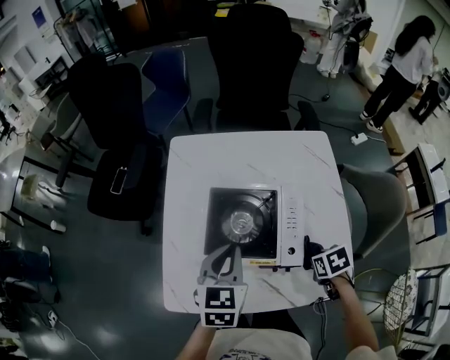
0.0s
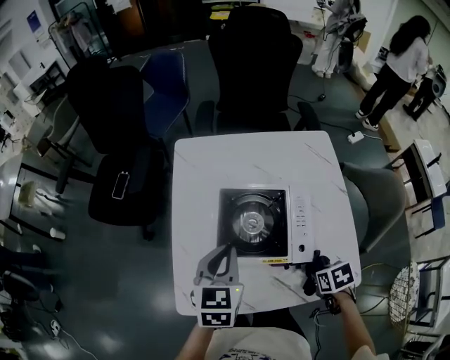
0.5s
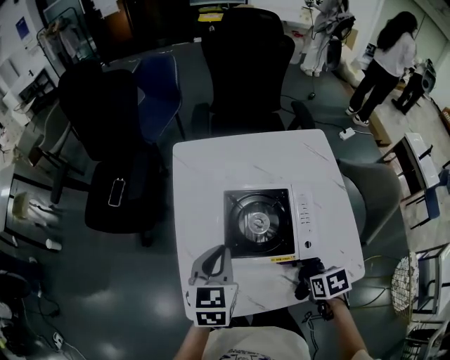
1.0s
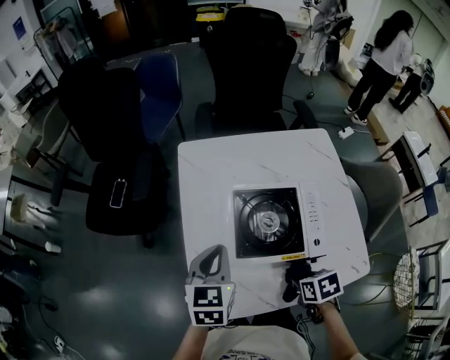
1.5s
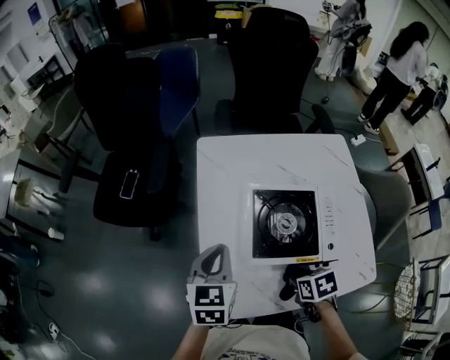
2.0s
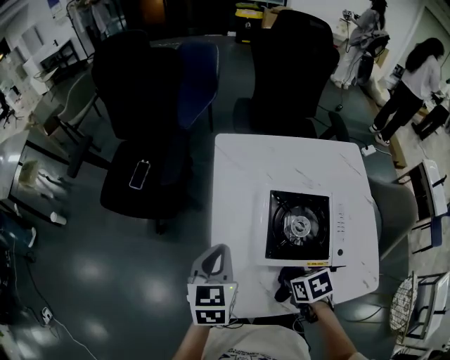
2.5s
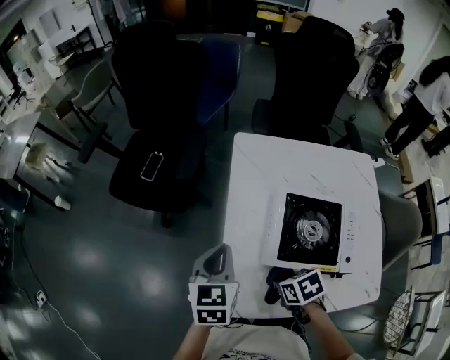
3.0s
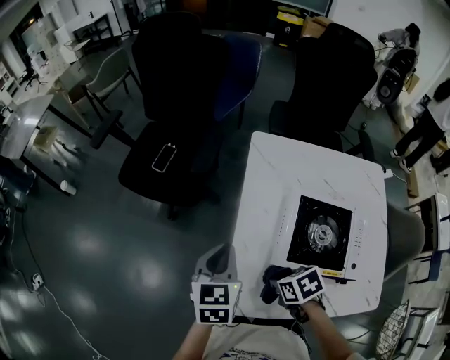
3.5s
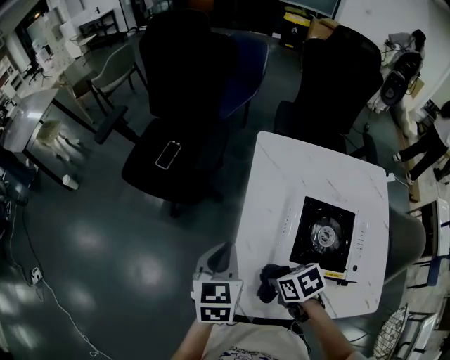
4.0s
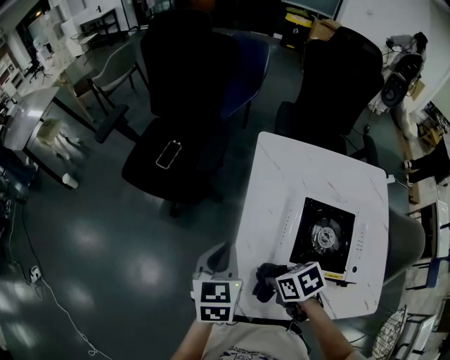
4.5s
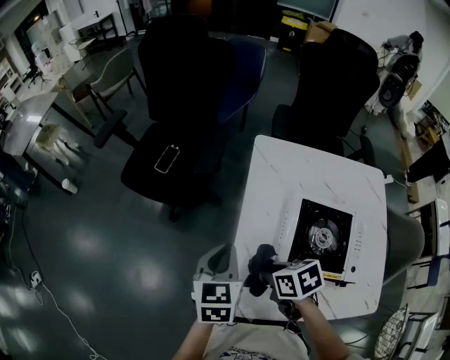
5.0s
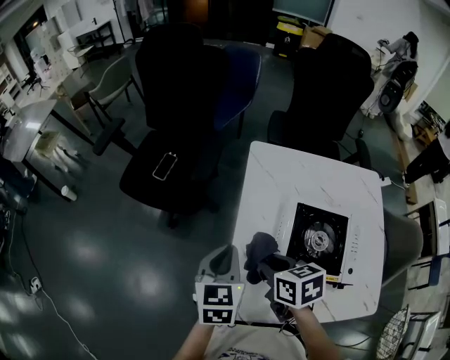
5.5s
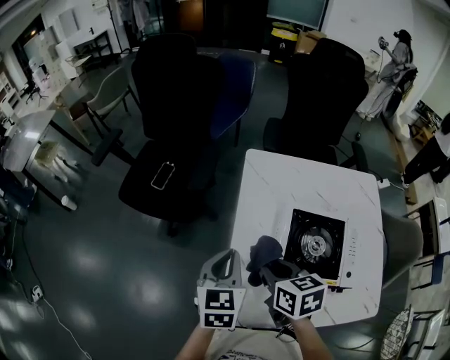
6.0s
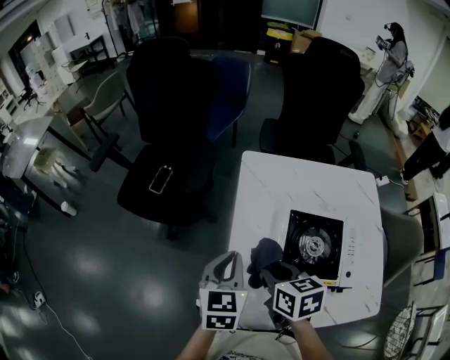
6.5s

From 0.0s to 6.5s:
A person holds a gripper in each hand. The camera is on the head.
From 0.0s to 2.0s: The right gripper ends up about 20 cm from where it was. Meanwhile the left gripper ends up about 20 cm from where it was.
From 2.0s to 4.5s: The left gripper moves to the left, about 10 cm. Meanwhile the right gripper moves to the left and forward, some 20 cm, and rotates some 30 degrees.
From 4.5s to 6.5s: The right gripper goes roughly 10 cm upward and forward, and rotates about 30 degrees. Meanwhile the left gripper shifts by approximately 5 cm.

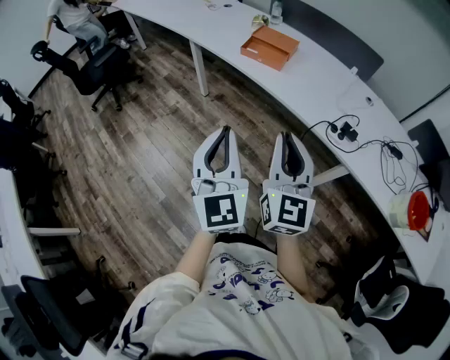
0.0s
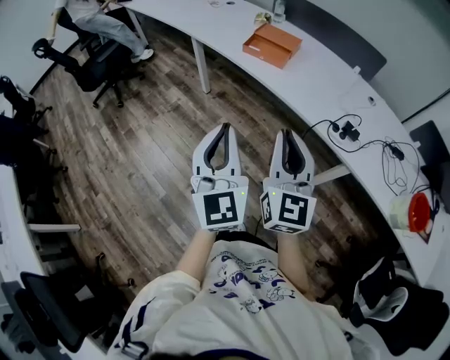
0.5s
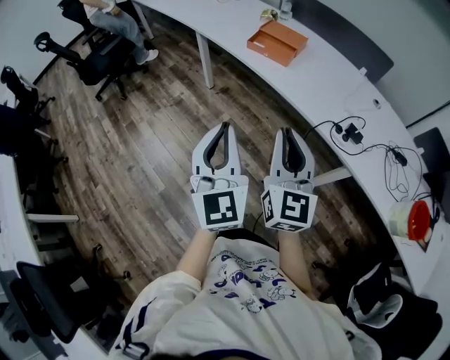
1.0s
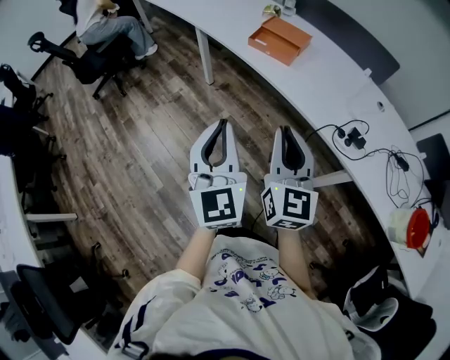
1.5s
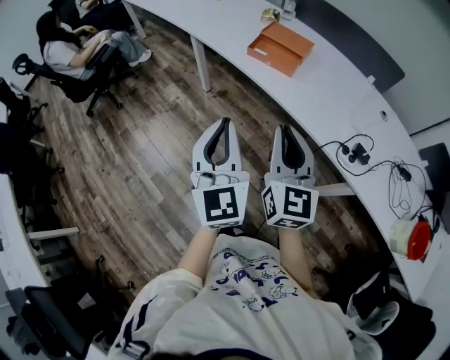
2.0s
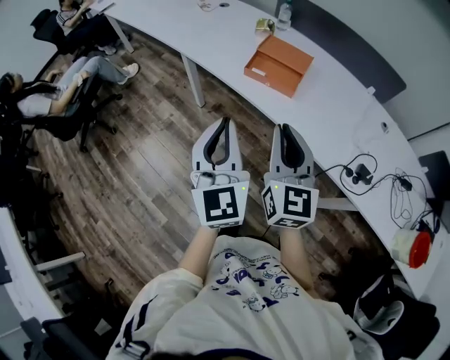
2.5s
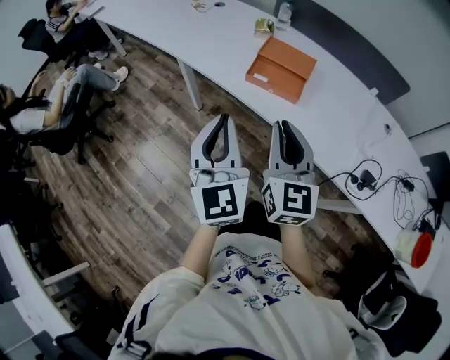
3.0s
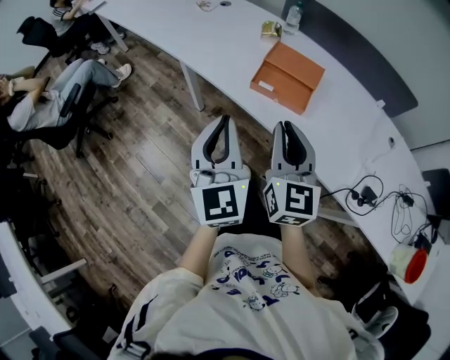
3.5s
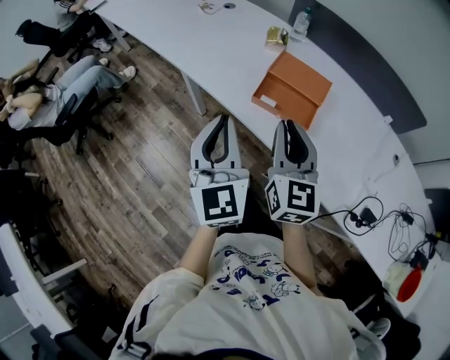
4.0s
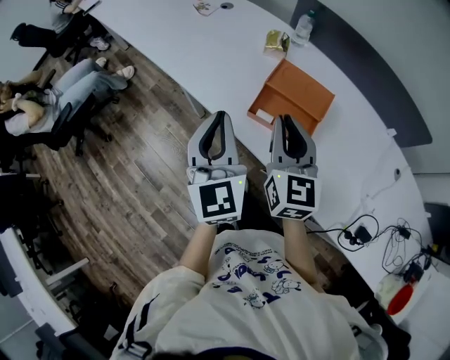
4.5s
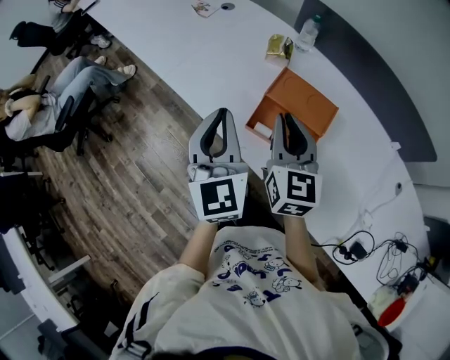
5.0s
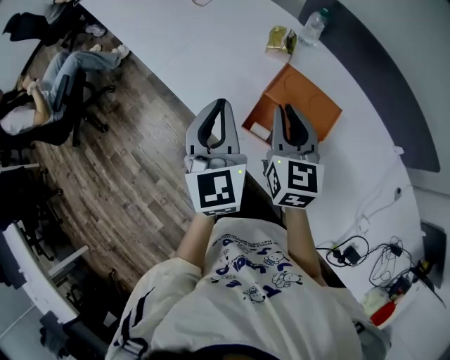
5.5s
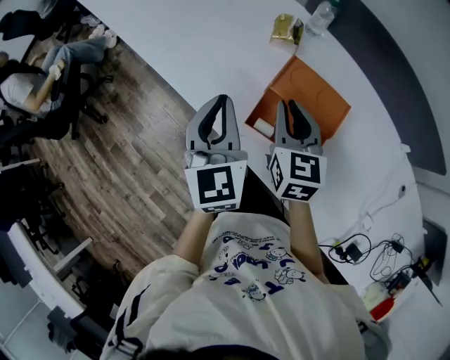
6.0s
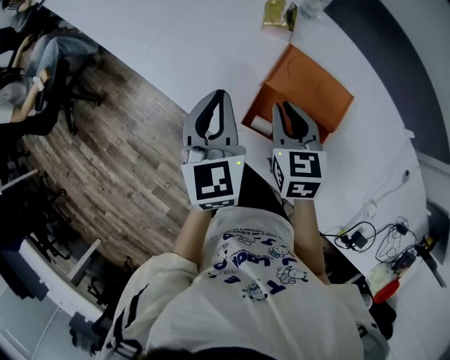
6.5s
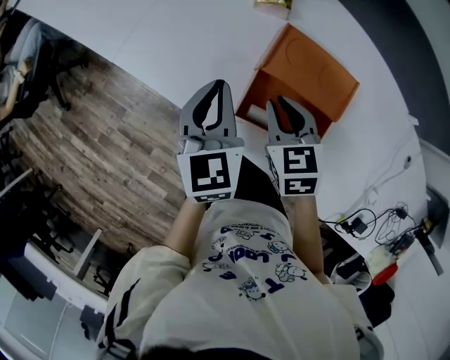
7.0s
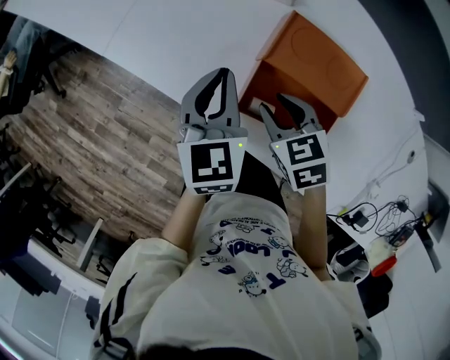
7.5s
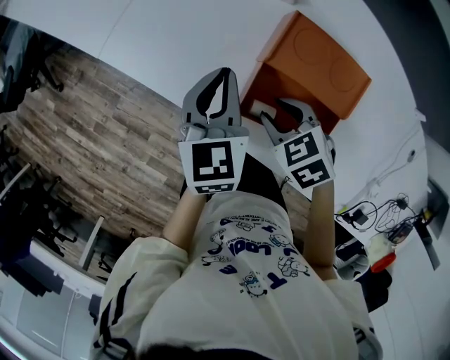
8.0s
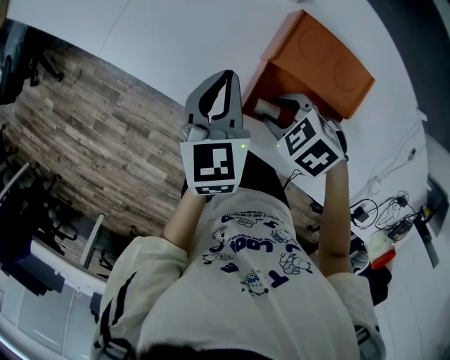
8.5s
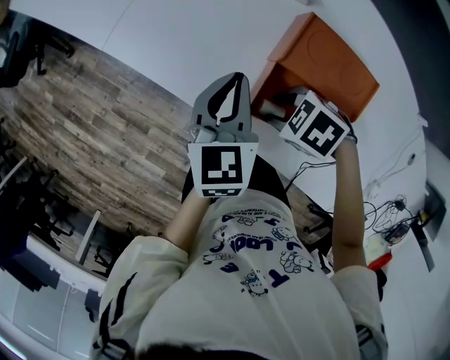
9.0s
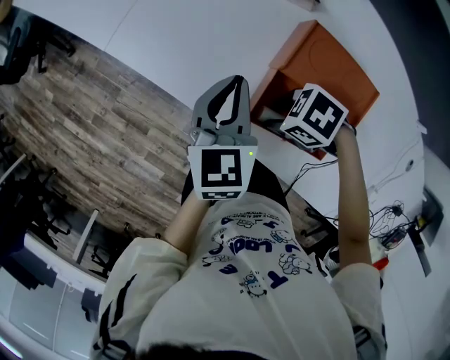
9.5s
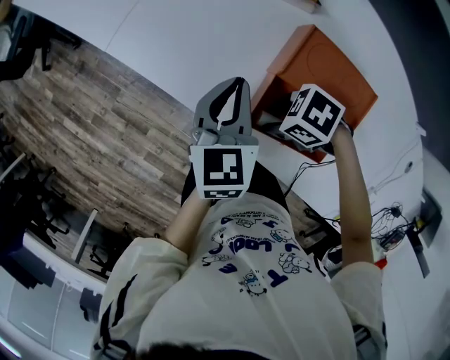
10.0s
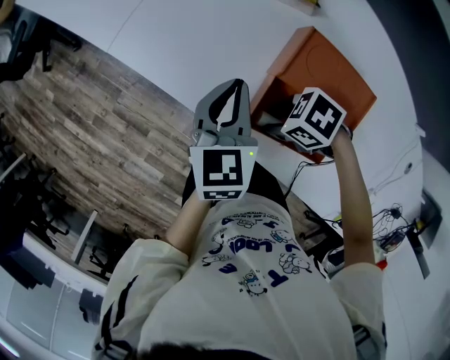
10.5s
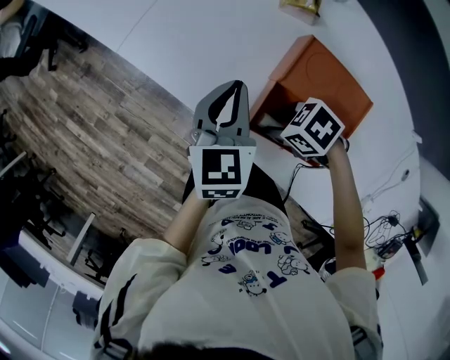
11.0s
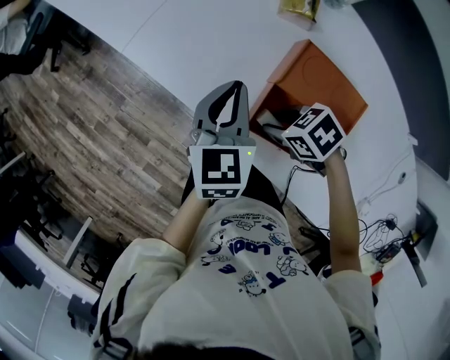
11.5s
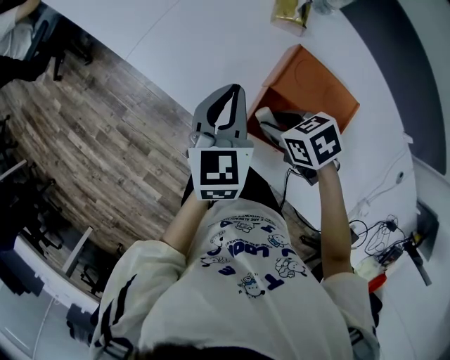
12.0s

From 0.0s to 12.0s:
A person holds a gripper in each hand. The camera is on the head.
From 0.0s to 2.0s: The grippers both shift forward by some 15 cm.
From 2.0s to 4.0s: The grippers both shift forward by some 35 cm.
From 4.0s to 6.0s: The right gripper moves forward and downward, some 25 cm. The left gripper heads forward, covering roughly 25 cm.
From 6.0s to 8.0s: The left gripper shifts roughly 15 cm downward and forward, and swivels roughly 20 degrees. Meanwhile the right gripper heads downward, covering approximately 15 cm, points its fingers approximately 40 degrees further downward, and opens its fingers.
From 8.0s to 10.0s: The right gripper changes its angle by roughly 40 degrees.
From 10.0s to 12.0s: The grippers both shift upward by some 5 cm. The right gripper swivels some 30 degrees.

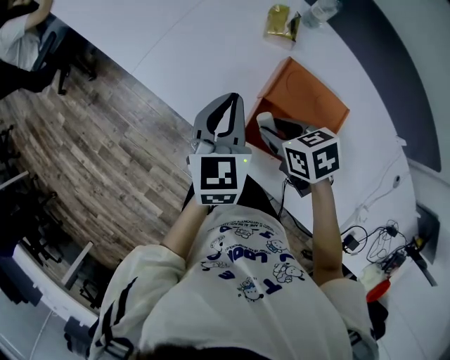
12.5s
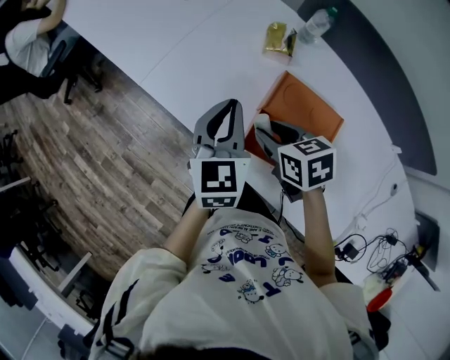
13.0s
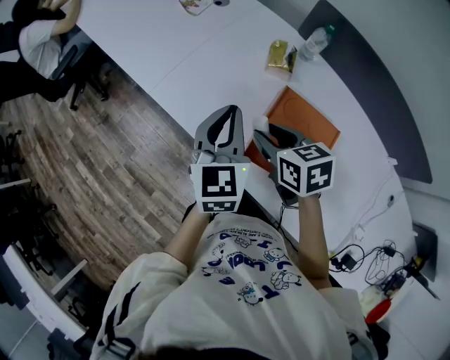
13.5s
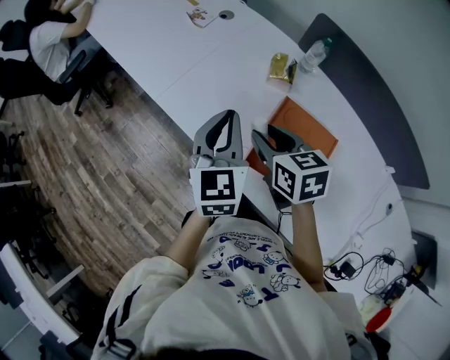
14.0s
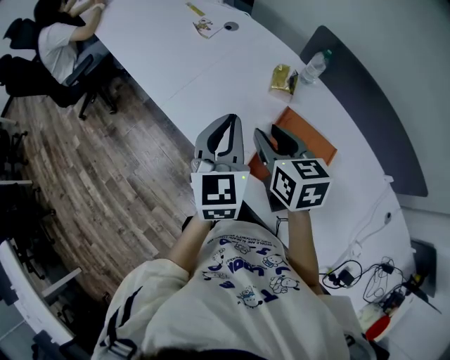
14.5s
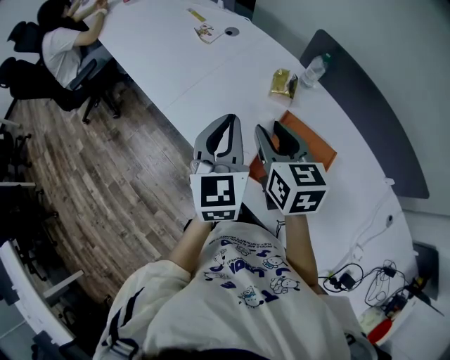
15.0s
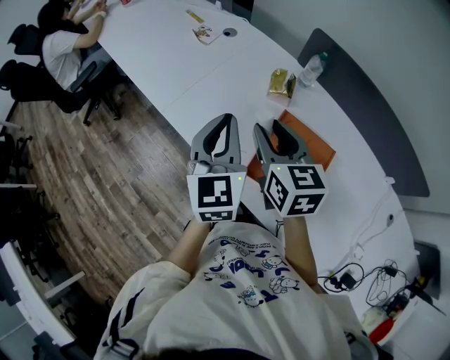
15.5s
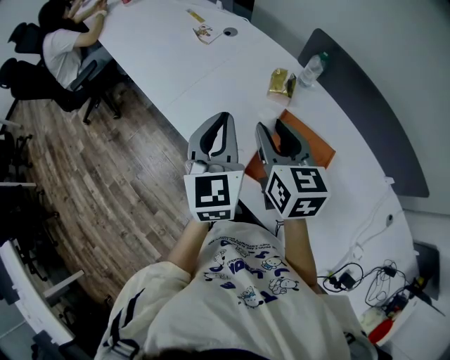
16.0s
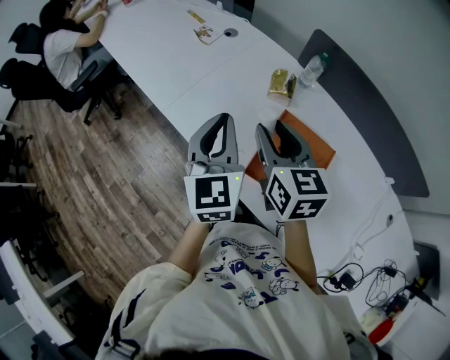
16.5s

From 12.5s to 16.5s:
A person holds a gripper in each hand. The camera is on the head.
From 12.5s to 14.5s: Both grippers move upward, about 15 cm. The right gripper rotates about 30 degrees.
From 14.5s to 16.5s: There are only small adjustments of the grippers.

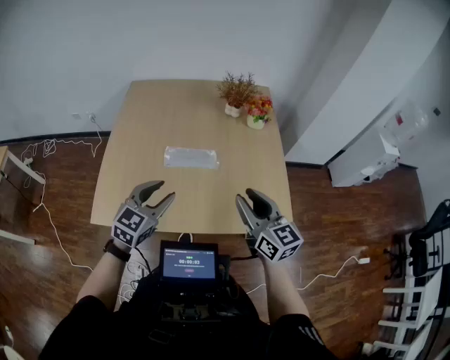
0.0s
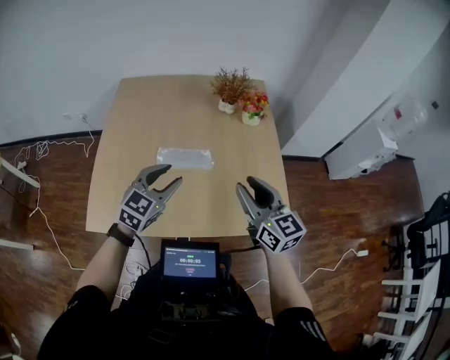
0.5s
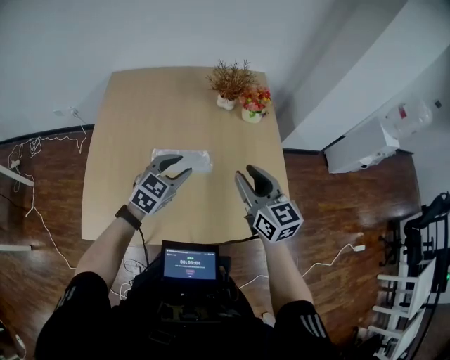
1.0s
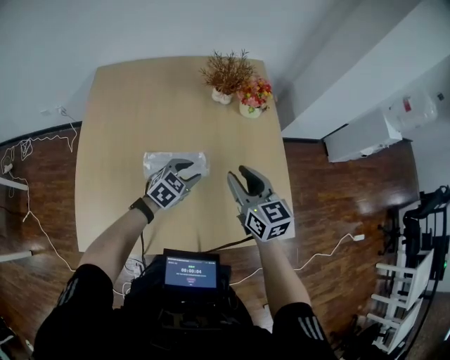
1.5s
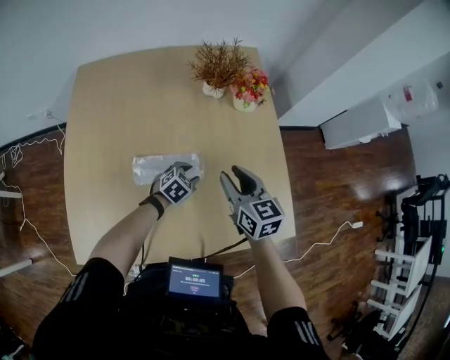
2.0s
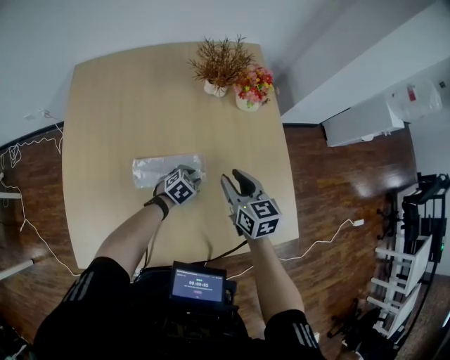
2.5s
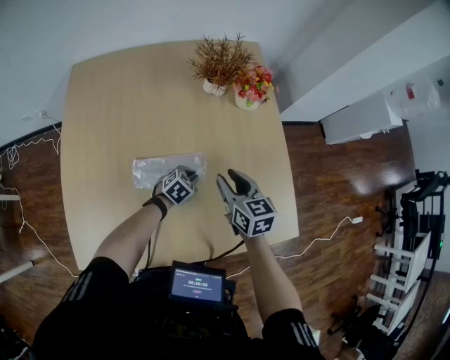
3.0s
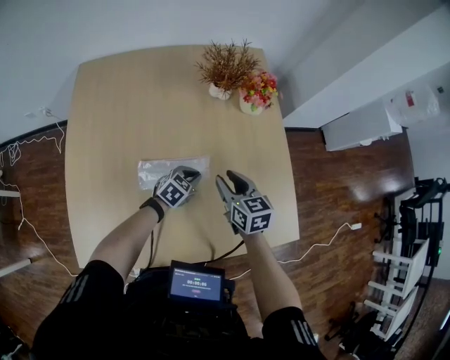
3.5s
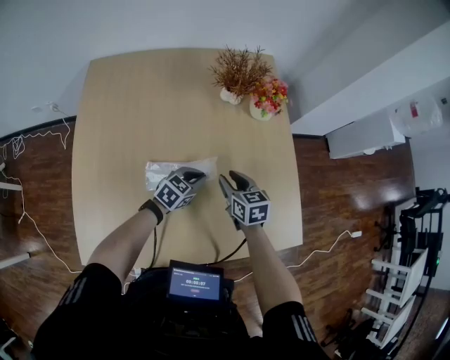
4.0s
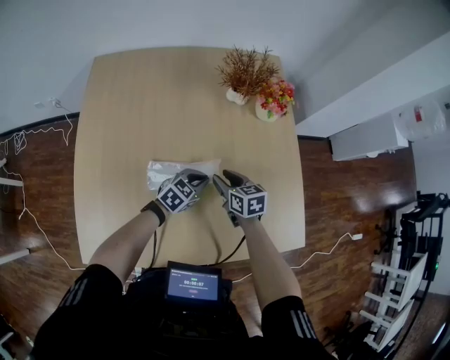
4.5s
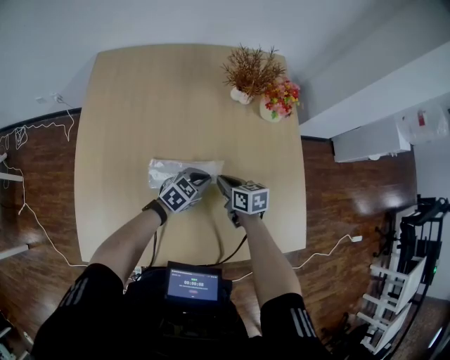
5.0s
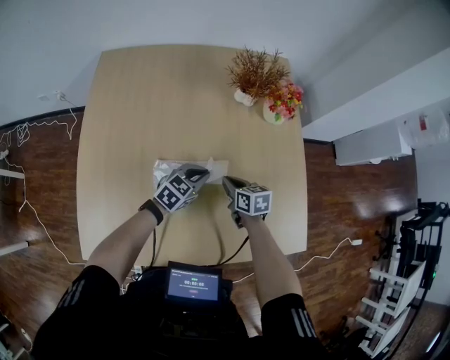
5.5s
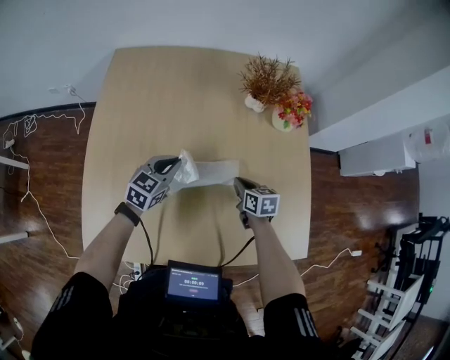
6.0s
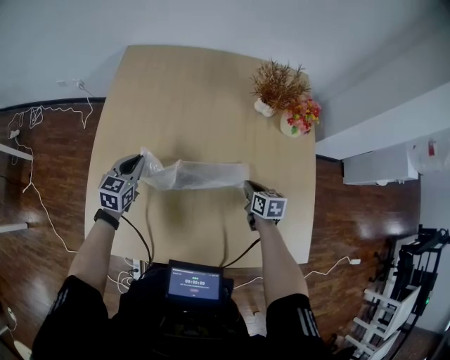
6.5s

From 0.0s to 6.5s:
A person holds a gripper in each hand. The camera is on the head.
From 0.0s to 2.0s: The right gripper is displaced forward and downward by approximately 25 cm, and swivels roughly 20 degrees. The left gripper moves downward and forward, about 40 cm, and tips its fingers downward by about 30 degrees.
From 2.0s to 4.5s: The left gripper shifts by about 5 cm, and closes up, while the right gripper shifts about 15 cm downward and to the left, and changes its angle by approximately 20 degrees.
From 4.5s to 6.5s: The right gripper moves downward, roughly 5 cm, and closes its fingers. The left gripper moves to the left, approximately 30 cm, and rotates some 40 degrees.
